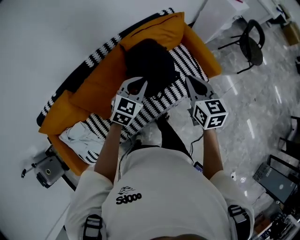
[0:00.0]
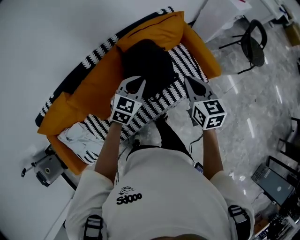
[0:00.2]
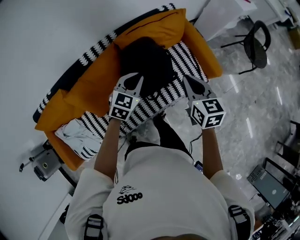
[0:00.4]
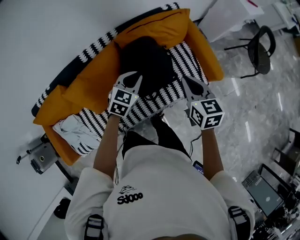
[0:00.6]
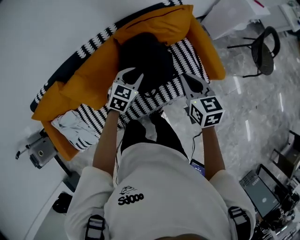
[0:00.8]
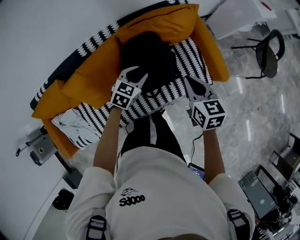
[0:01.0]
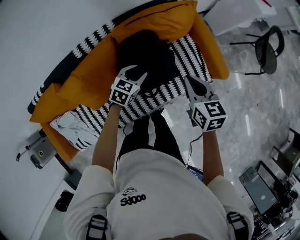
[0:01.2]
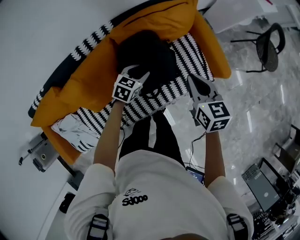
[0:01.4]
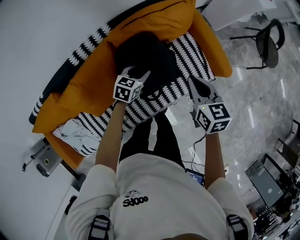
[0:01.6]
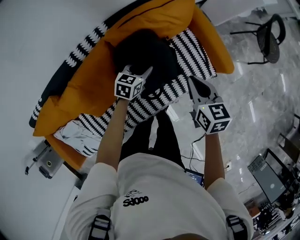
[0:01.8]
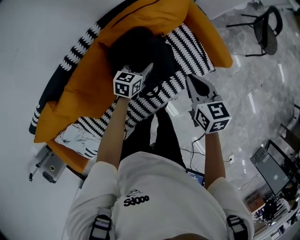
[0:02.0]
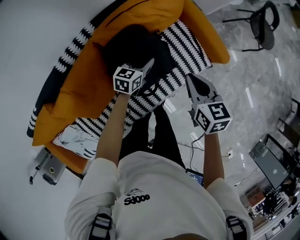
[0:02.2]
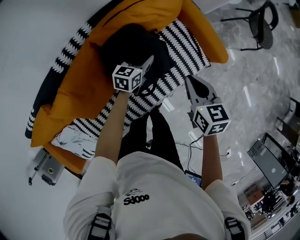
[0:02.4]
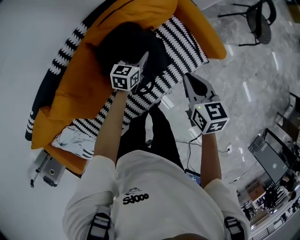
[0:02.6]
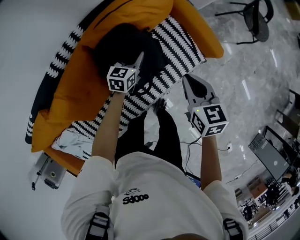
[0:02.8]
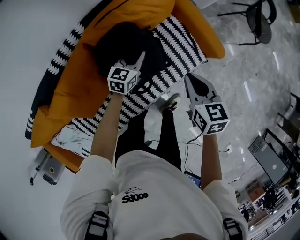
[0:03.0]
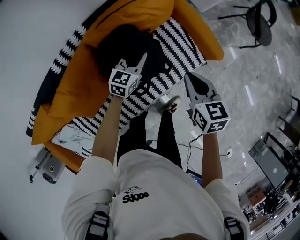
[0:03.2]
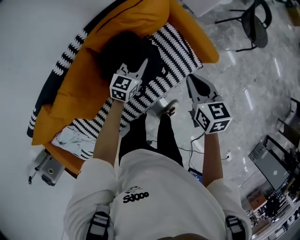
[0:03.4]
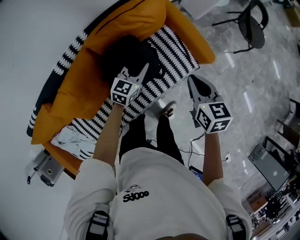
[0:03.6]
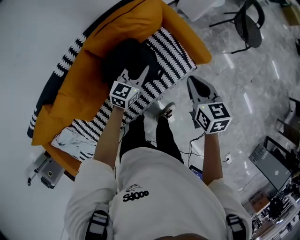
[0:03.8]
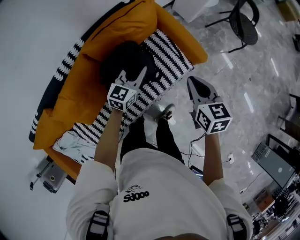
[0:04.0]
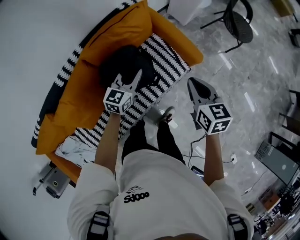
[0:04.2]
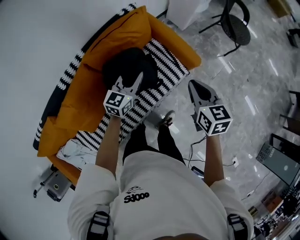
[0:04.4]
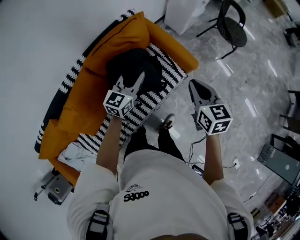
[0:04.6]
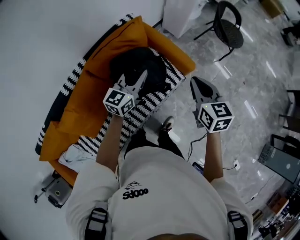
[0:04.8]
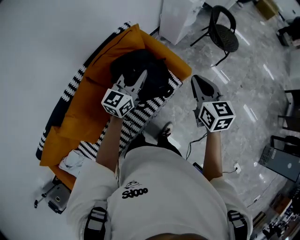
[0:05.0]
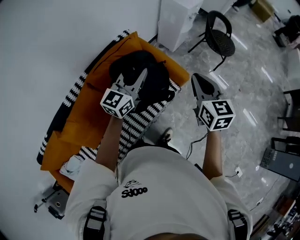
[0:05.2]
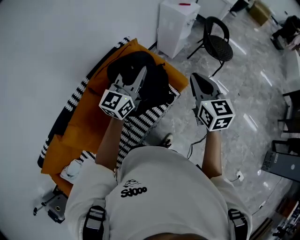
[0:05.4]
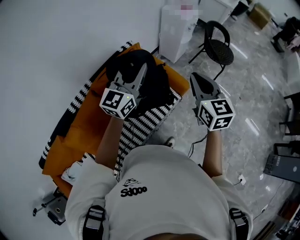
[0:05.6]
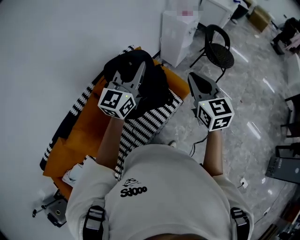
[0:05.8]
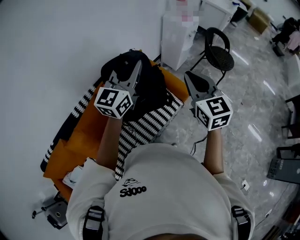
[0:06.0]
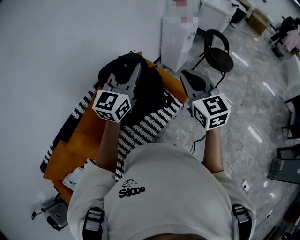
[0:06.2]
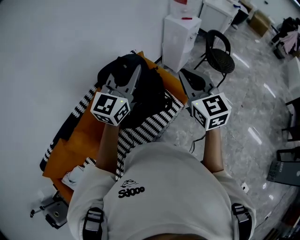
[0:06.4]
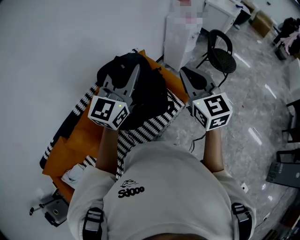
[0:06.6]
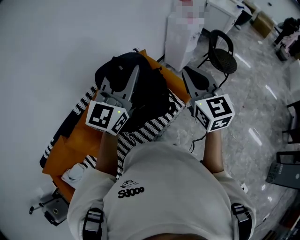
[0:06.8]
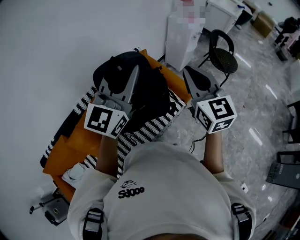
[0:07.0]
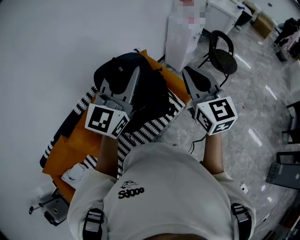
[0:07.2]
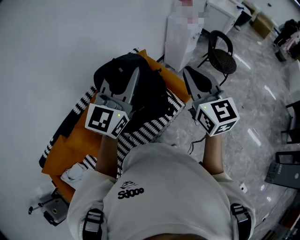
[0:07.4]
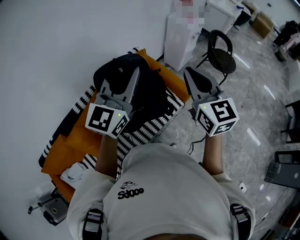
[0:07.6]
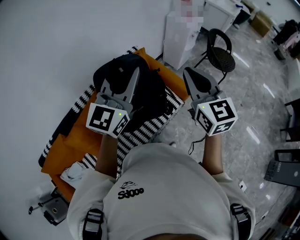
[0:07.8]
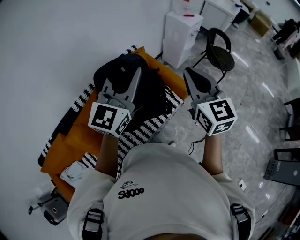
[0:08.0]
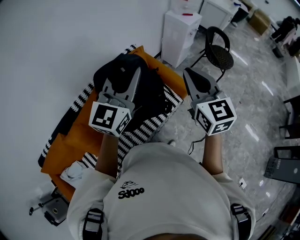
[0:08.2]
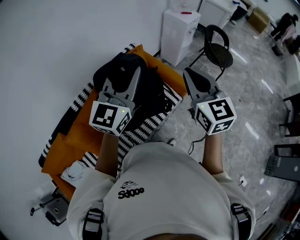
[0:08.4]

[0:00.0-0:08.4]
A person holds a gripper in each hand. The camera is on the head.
0:00.0 to 0:01.4: The right gripper goes about 20 cm forward and downward. Meanwhile the left gripper moves downward and forward, roughly 30 cm, changes its angle by roughly 20 degrees, and opens.
0:01.4 to 0:02.8: The left gripper goes approximately 10 cm forward and downward, and closes its fingers. Meanwhile the right gripper heads downward, covering about 5 cm.
0:02.8 to 0:04.2: The right gripper heads to the right and upward, covering roughly 20 cm; the left gripper travels upward, to the right and backward by approximately 25 cm.
0:04.2 to 0:05.6: Both grippers travel together upward, some 30 cm. The left gripper swivels roughly 30 degrees. Meanwhile the right gripper changes its angle by roughly 20 degrees.
0:05.6 to 0:07.0: The left gripper moves upward and backward, approximately 15 cm, while the right gripper shifts some 10 cm upward and to the left.
0:07.0 to 0:08.4: The grippers make only small movements.

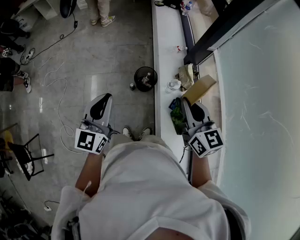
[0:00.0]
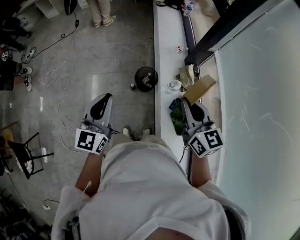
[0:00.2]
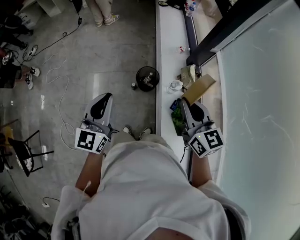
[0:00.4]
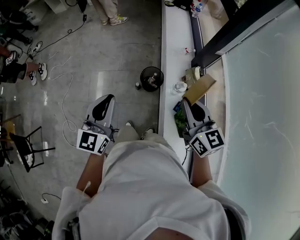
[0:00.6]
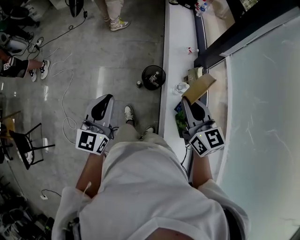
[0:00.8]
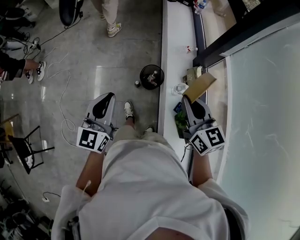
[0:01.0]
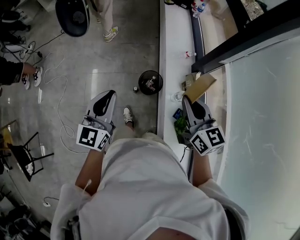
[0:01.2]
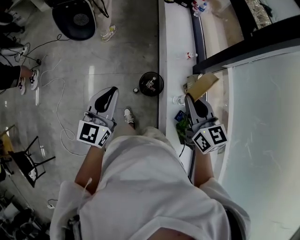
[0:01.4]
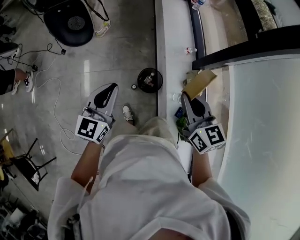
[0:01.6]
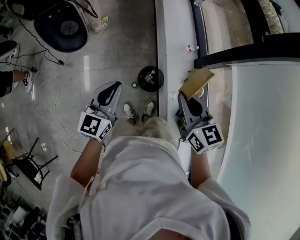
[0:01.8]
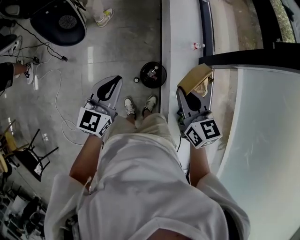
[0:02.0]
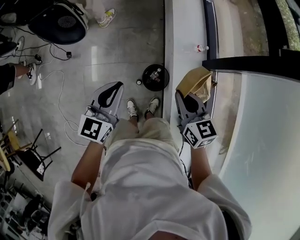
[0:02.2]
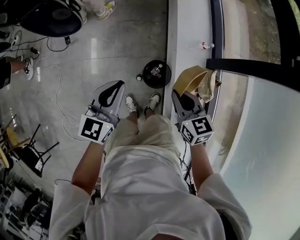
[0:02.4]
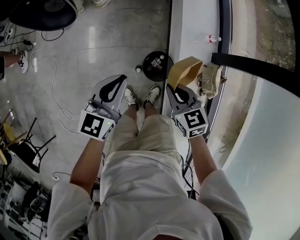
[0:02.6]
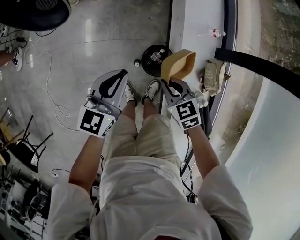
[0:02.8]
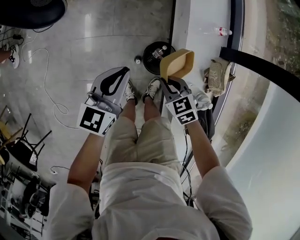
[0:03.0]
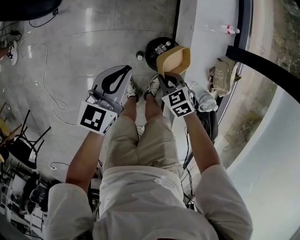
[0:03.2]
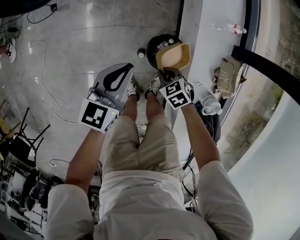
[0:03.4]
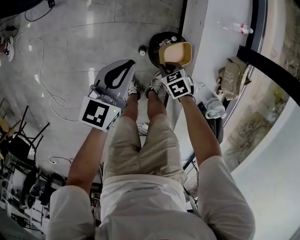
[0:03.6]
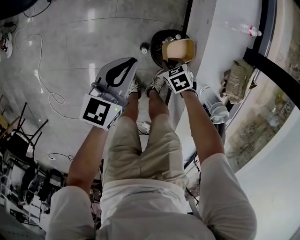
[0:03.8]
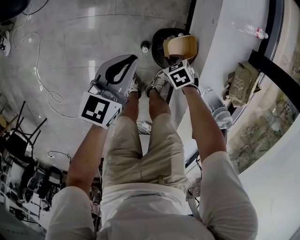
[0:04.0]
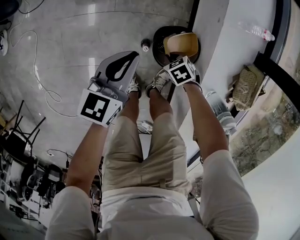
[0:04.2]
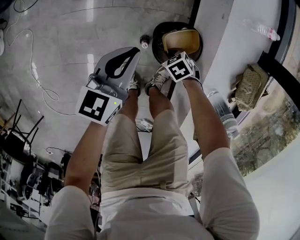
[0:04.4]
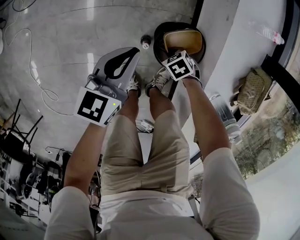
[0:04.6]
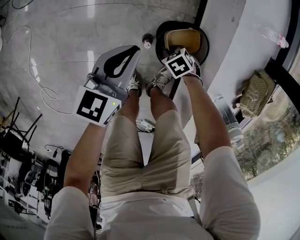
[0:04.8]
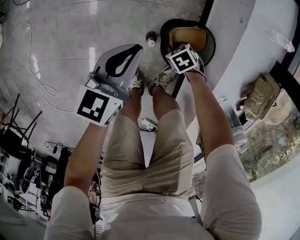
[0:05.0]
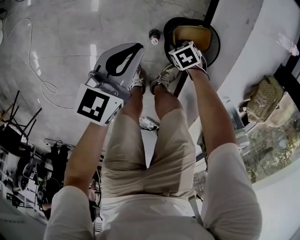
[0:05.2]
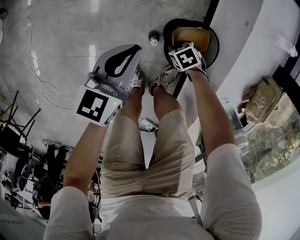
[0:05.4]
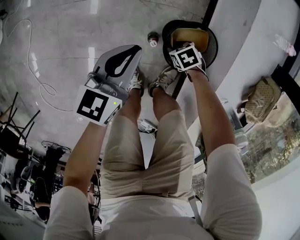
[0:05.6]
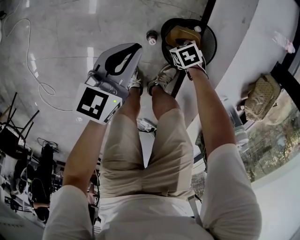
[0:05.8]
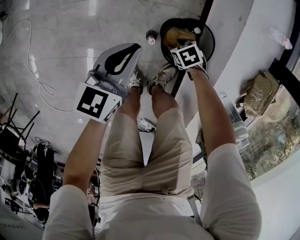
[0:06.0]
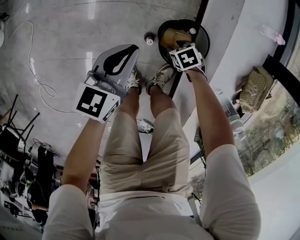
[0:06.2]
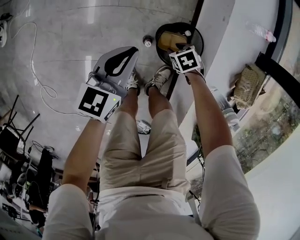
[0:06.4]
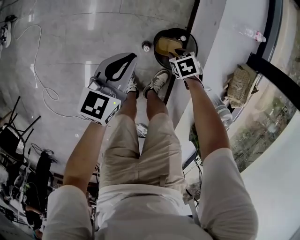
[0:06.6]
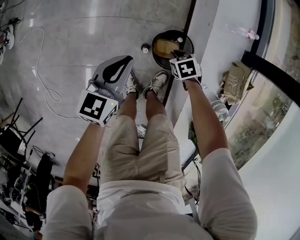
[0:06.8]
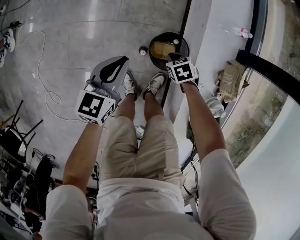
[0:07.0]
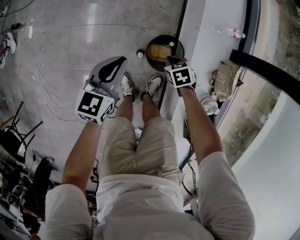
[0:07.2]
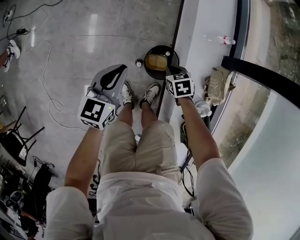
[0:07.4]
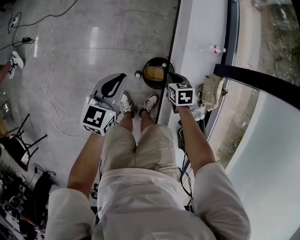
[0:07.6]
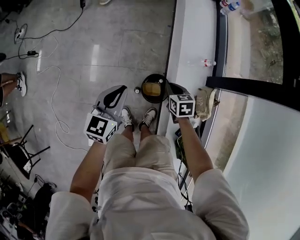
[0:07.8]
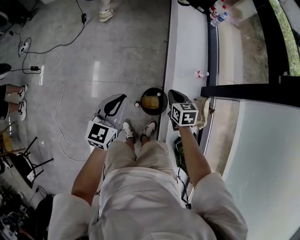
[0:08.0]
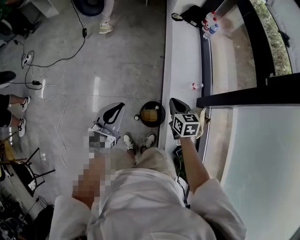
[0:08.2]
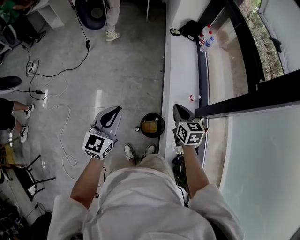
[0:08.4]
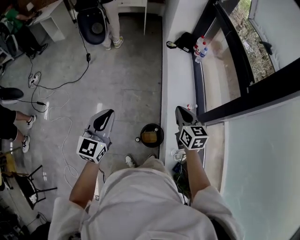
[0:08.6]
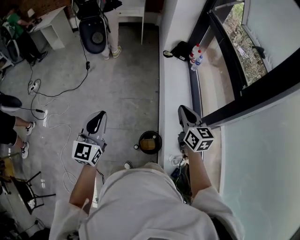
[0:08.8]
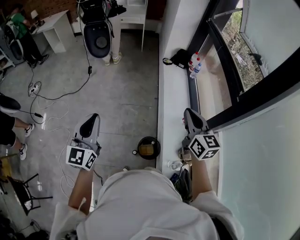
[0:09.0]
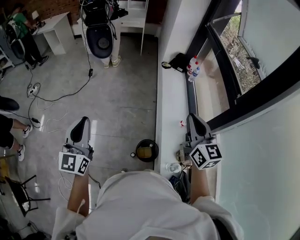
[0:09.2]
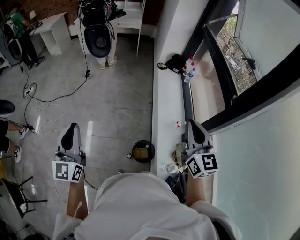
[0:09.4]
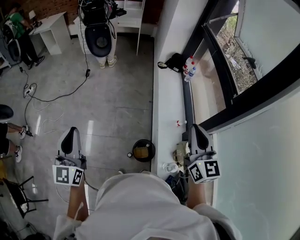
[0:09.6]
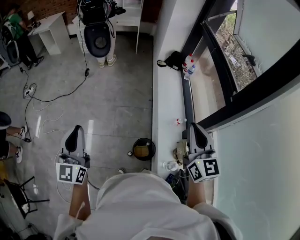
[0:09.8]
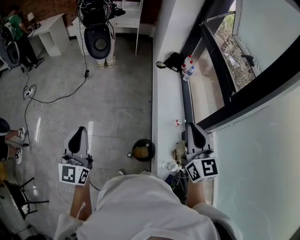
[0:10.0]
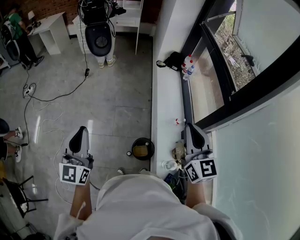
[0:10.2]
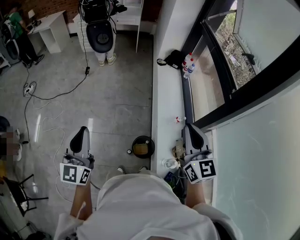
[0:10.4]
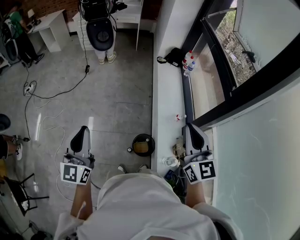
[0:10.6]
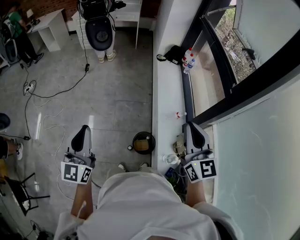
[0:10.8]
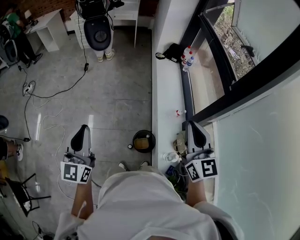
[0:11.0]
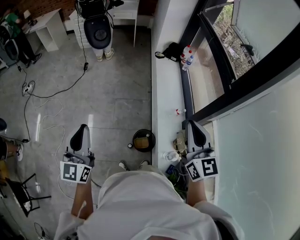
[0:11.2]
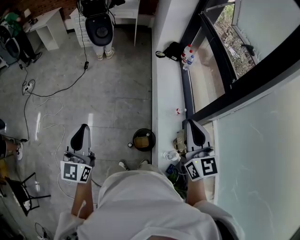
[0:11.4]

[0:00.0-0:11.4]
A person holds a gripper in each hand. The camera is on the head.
0:00.0 to 0:01.4: Both grippers move forward, some 20 cm.
0:01.4 to 0:02.8: The left gripper is displaced downward and forward by approximately 25 cm. The right gripper travels downward by roughly 35 cm, and rotates some 40 degrees.
0:02.8 to 0:04.2: The left gripper heads downward, covering approximately 25 cm. The right gripper shifts about 40 cm downward, and changes its angle by about 30 degrees.
0:04.2 to 0:05.6: Both grippers move downward, about 10 cm. The right gripper opens up.
0:05.6 to 0:07.2: Both grippers move upward, some 25 cm. The right gripper closes its fingers.
0:07.2 to 0:08.6: Both grippers move upward, some 40 cm. The left gripper changes its angle by some 30 degrees. The right gripper points its fingers approximately 50 degrees further upward.
0:08.6 to 0:10.0: The left gripper travels upward, to the left and backward by some 15 cm, and changes its angle by some 20 degrees; the right gripper heads upward and backward, covering roughly 20 cm, and swivels about 30 degrees.
0:10.0 to 0:11.4: The grippers make only small movements.

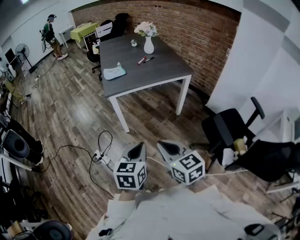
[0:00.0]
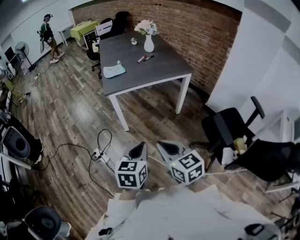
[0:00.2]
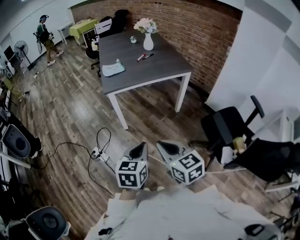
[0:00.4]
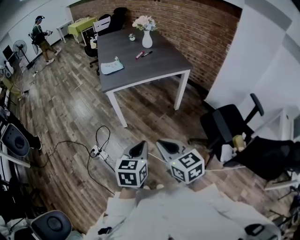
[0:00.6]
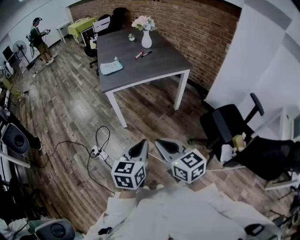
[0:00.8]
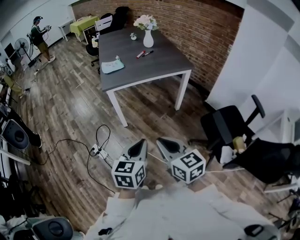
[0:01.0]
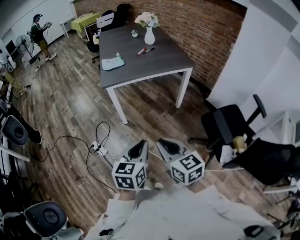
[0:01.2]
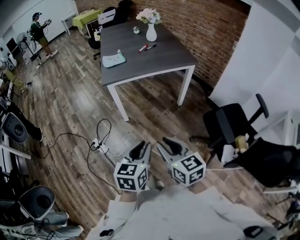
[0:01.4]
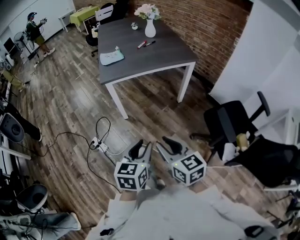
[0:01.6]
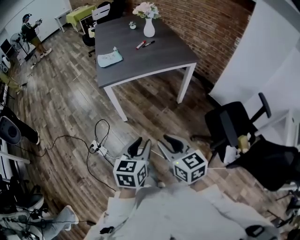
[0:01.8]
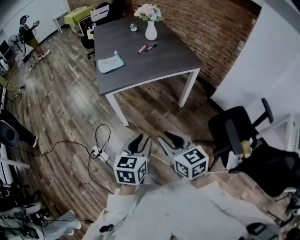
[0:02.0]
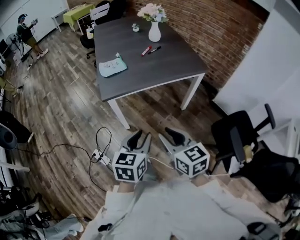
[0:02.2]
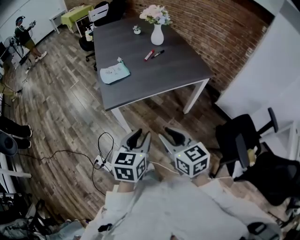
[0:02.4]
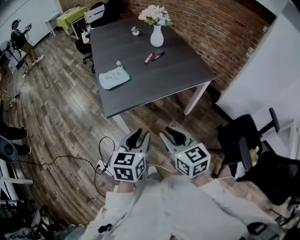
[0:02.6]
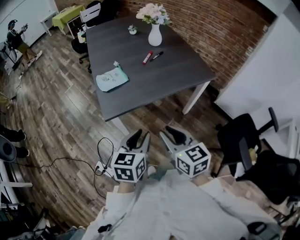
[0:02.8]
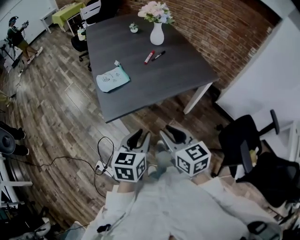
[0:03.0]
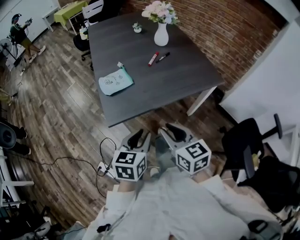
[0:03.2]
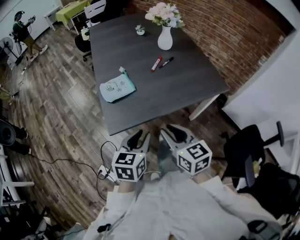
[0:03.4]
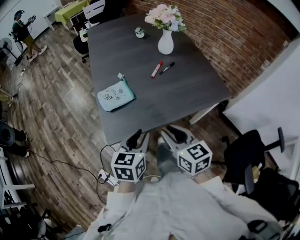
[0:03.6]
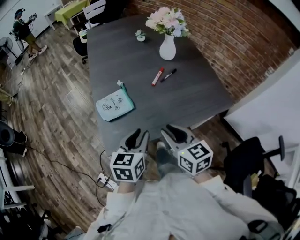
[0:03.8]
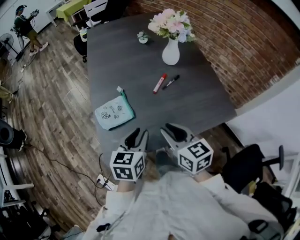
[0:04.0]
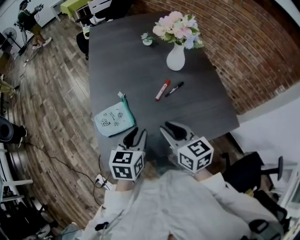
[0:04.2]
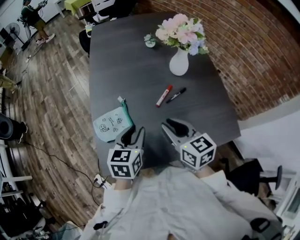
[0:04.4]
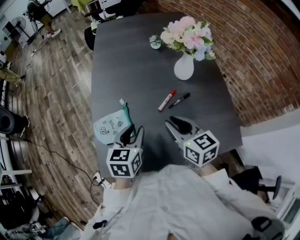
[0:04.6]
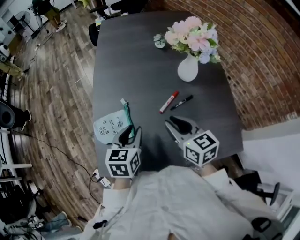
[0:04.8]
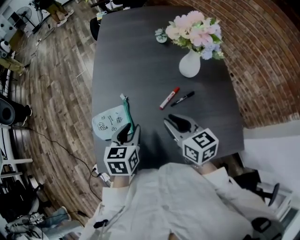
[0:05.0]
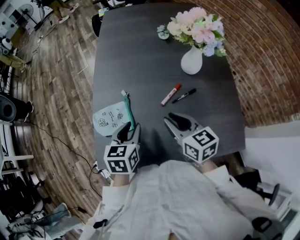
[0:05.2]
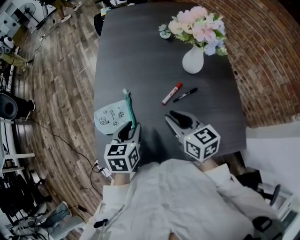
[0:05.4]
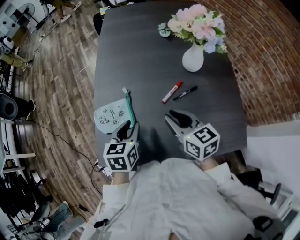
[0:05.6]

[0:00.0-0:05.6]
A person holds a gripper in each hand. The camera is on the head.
0:00.0 to 0:01.4: There are only small adjustments of the grippers.
0:01.4 to 0:02.8: Both grippers travel together forward, roughly 35 cm.
0:02.8 to 0:04.2: Both grippers travel together forward, about 35 cm.
0:04.2 to 0:05.6: Both grippers move forward, about 5 cm.
